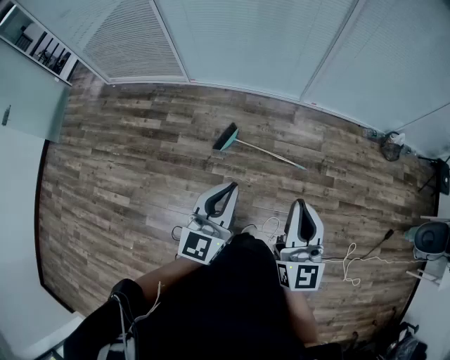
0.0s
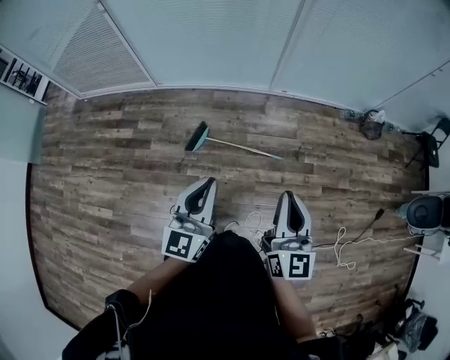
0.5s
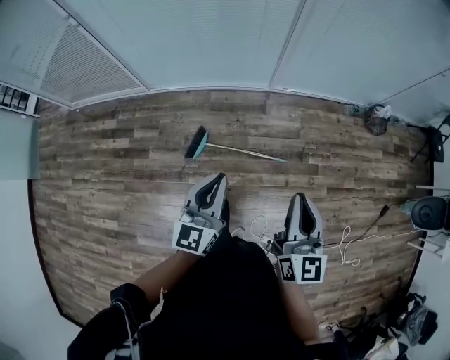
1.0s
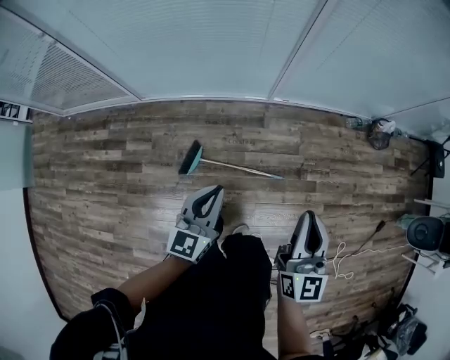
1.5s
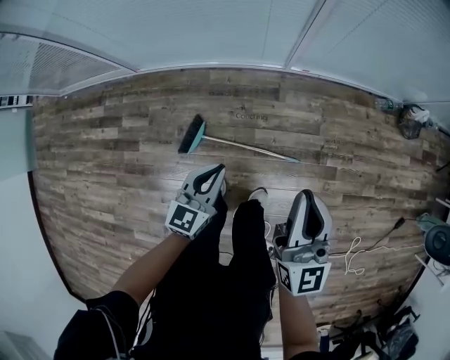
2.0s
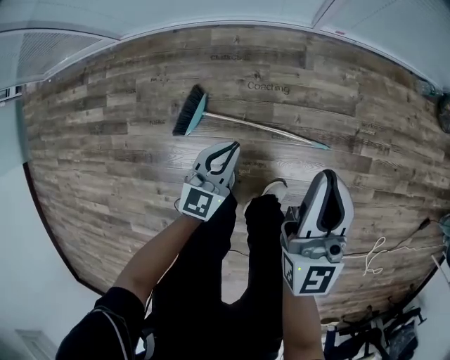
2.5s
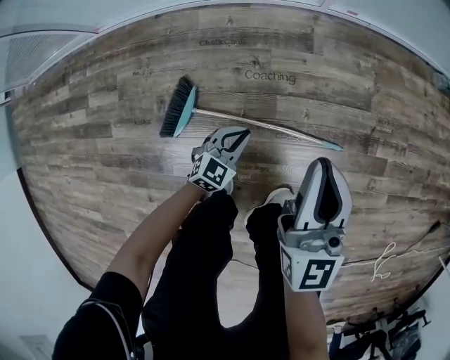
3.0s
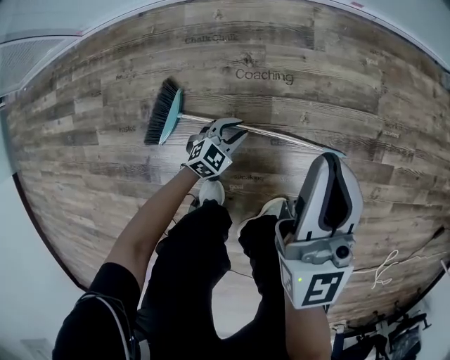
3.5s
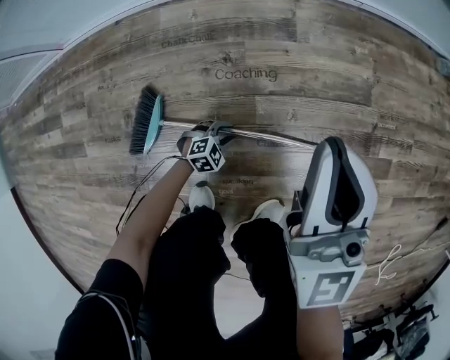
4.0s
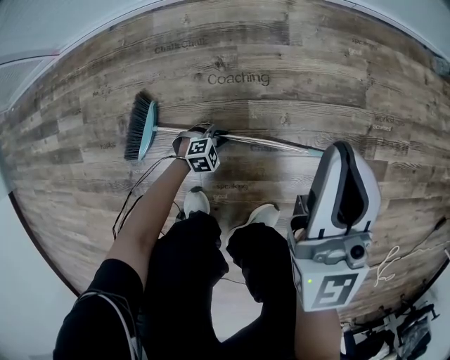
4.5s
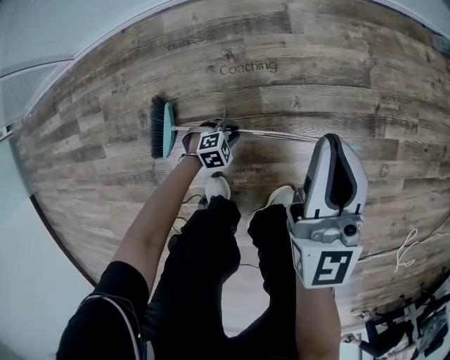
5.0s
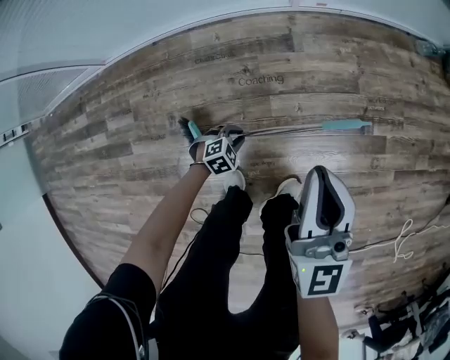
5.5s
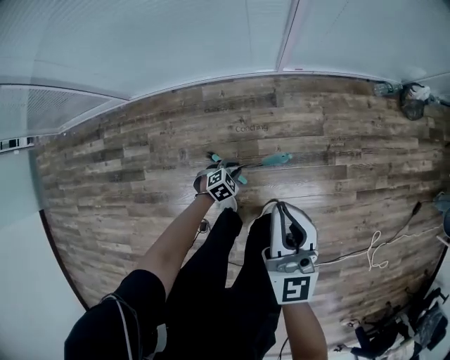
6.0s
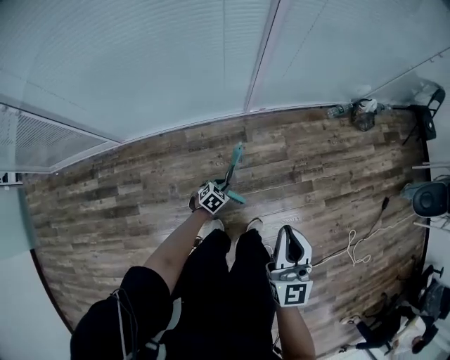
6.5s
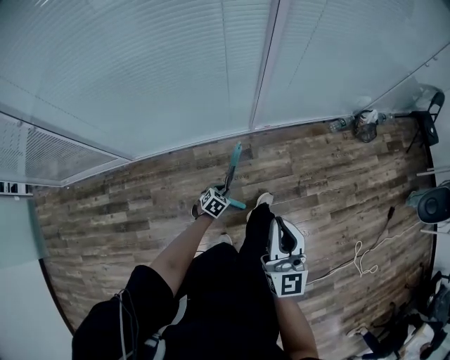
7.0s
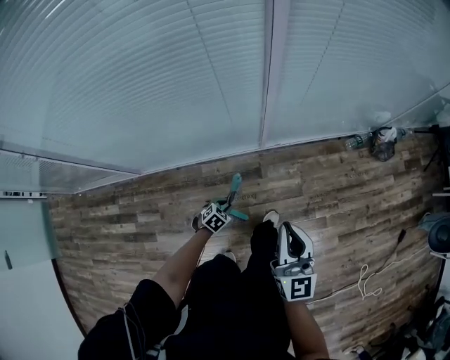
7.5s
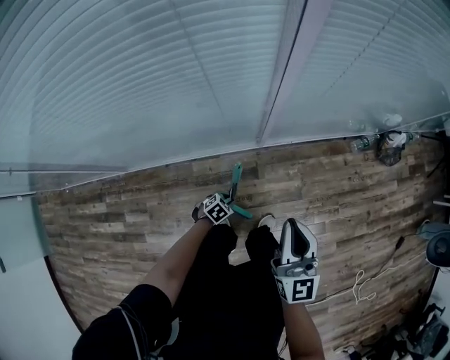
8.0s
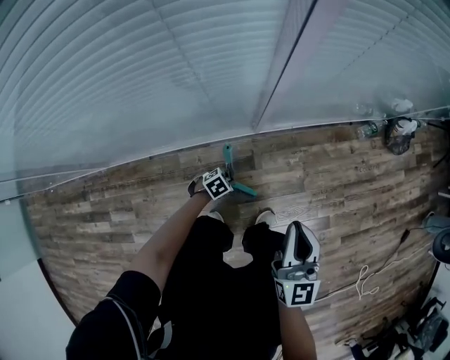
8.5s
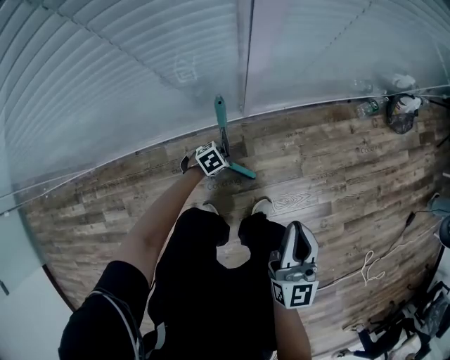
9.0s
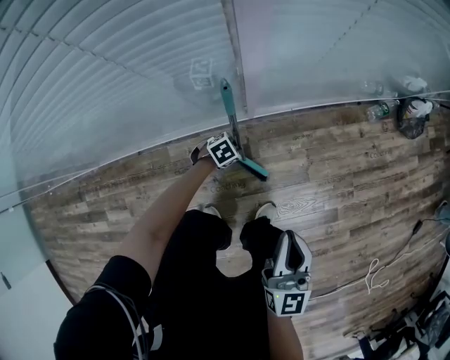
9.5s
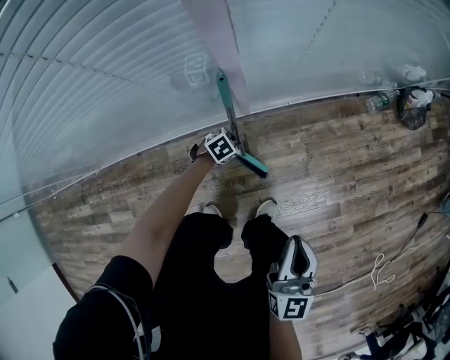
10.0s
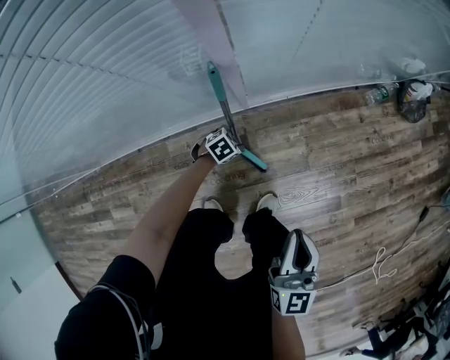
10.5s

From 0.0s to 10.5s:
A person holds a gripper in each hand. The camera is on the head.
From 0.0s to 2.0s: Both grippers travel together forward and downward, roughly 40 cm. The left gripper changes its angle by approximately 20 degrees.
From 2.0s to 4.0s: The left gripper shifts approximately 70 cm downward, tips its fingers downward by some 40 degrees, and opens its fingers. Meanwhile the right gripper heads downward, covering approximately 40 cm.
From 4.0s to 6.5s: The two grippers go some 50 cm upward. The left gripper swivels some 20 degrees.
From 6.5s to 8.5s: The right gripper moves about 40 cm. The left gripper changes place by roughly 35 cm, and swivels about 20 degrees.
From 8.5s to 10.5s: The right gripper heads downward and to the right, covering some 10 cm, while the left gripper is displaced forward and downward by roughly 15 cm, and opens.

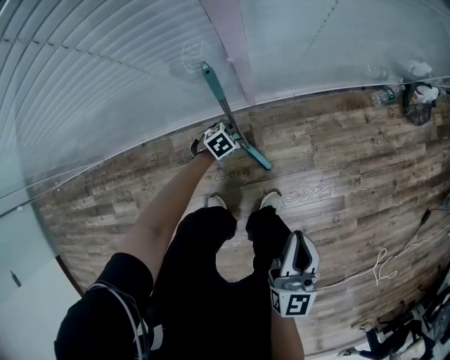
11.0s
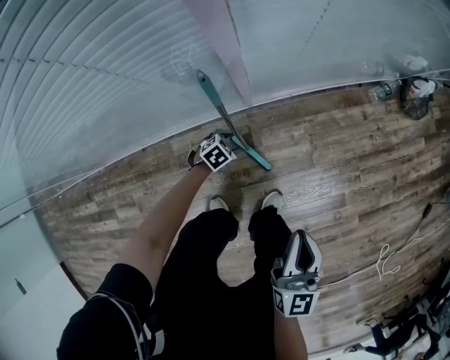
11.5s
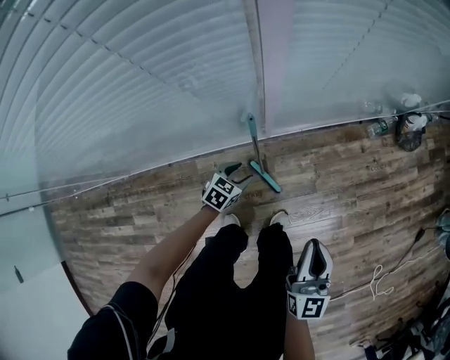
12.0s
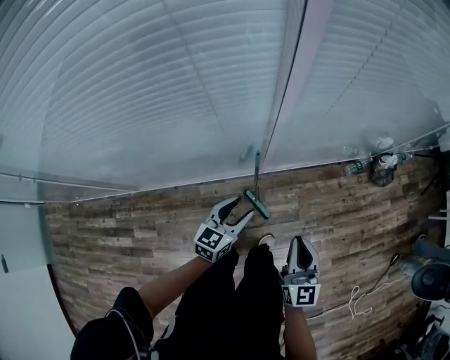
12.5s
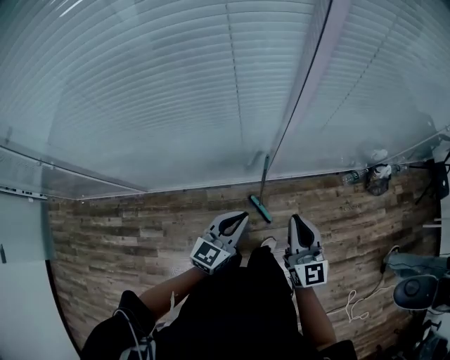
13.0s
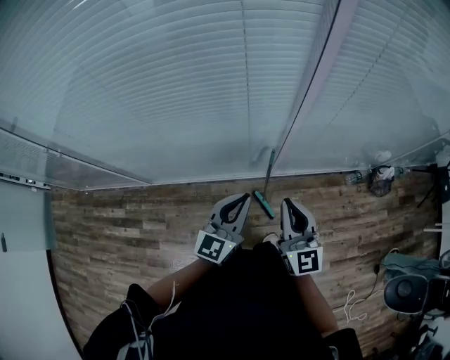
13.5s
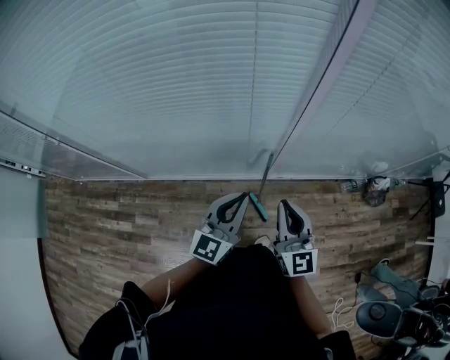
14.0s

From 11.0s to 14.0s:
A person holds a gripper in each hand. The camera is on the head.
From 11.0s to 12.5s: The left gripper travels upward by about 50 cm, and points its fingers roughly 40 degrees further upward. The right gripper shifts approximately 25 cm upward.
From 12.5s to 14.0s: The left gripper is displaced upward by approximately 20 cm, turns by some 30 degrees, and closes its fingers. Meanwhile the right gripper heads upward and to the left, covering roughly 15 cm.

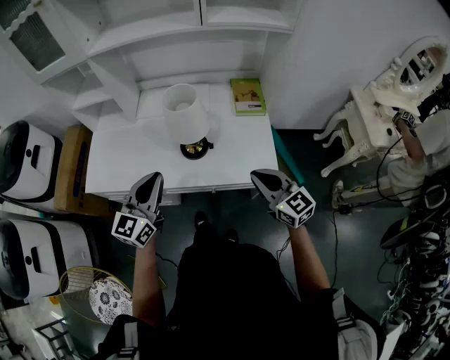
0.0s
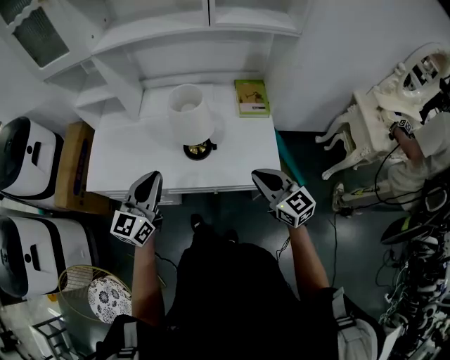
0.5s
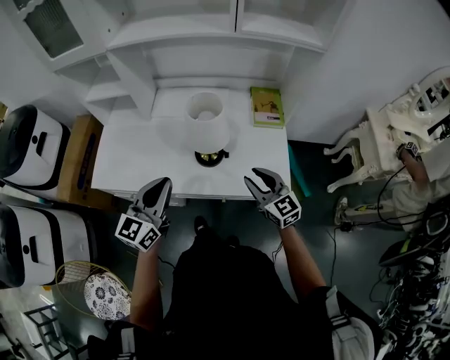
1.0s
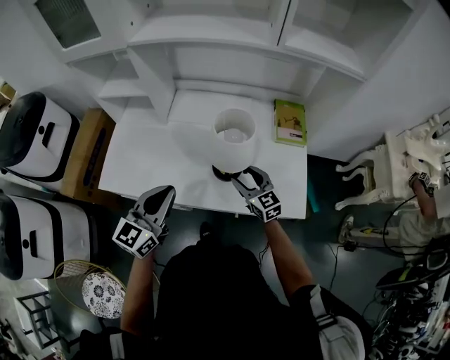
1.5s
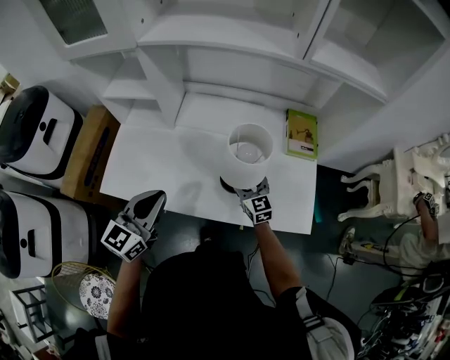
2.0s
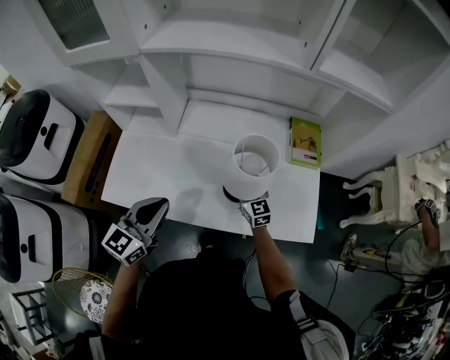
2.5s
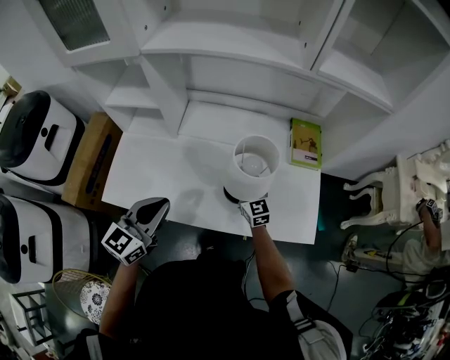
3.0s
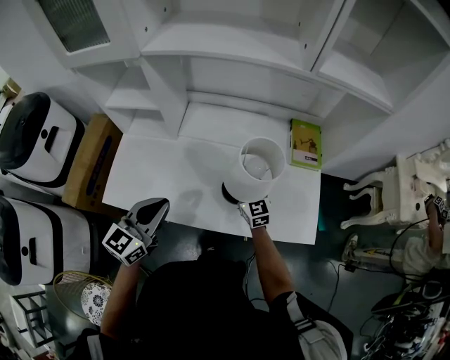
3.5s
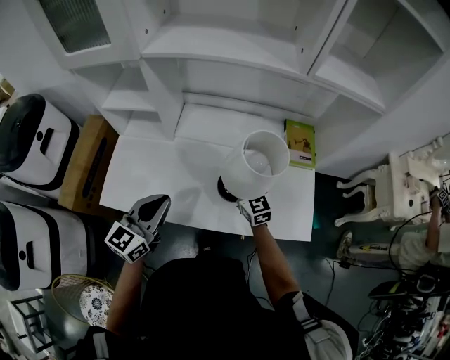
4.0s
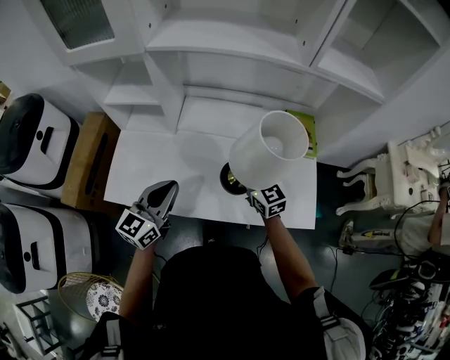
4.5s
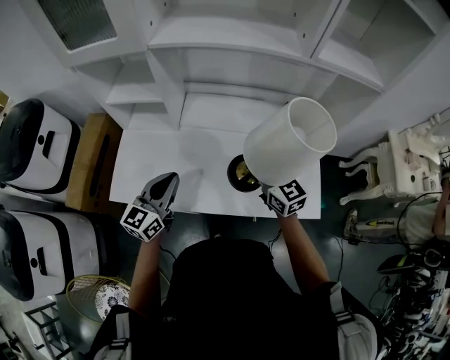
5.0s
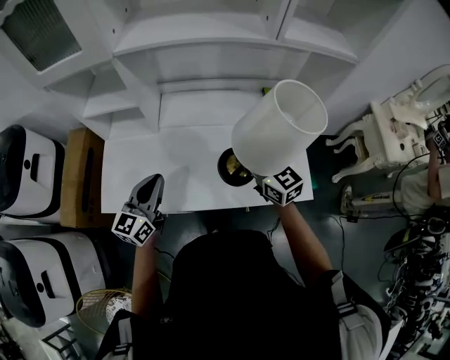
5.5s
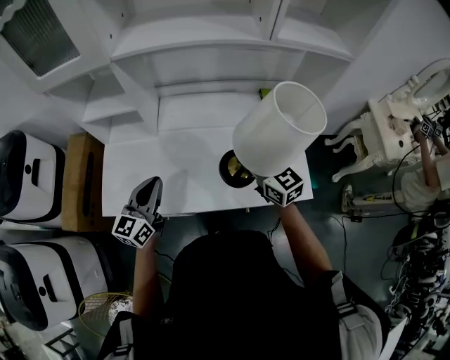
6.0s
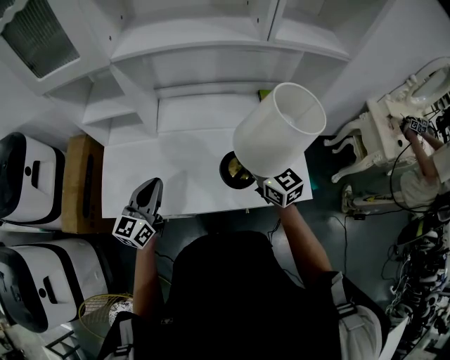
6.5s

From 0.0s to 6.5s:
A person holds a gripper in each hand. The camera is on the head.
From 0.0s to 2.0s: The right gripper moves forward, to the left and downward, roughly 35 cm, and opens, while the left gripper moves to the left and forward, some 15 cm.
From 2.0s to 4.5s: The right gripper travels upward by about 10 cm, and closes its fingers.
From 4.5s to 6.5s: The right gripper is displaced upward by roughly 5 cm.

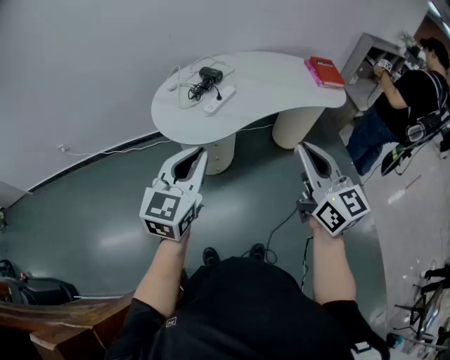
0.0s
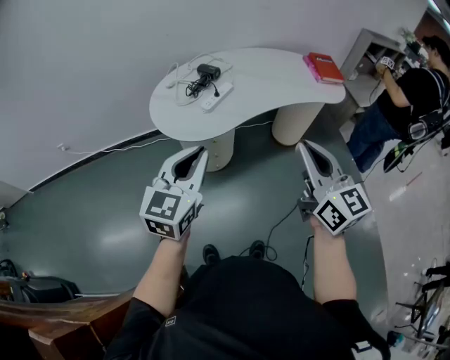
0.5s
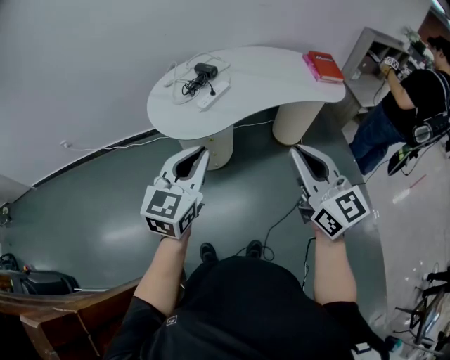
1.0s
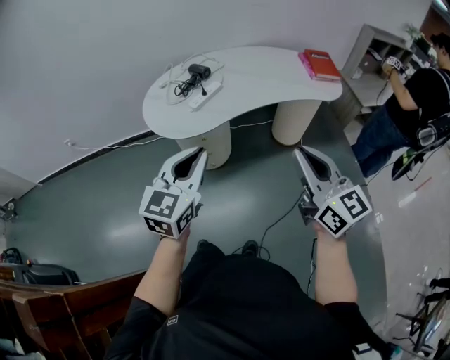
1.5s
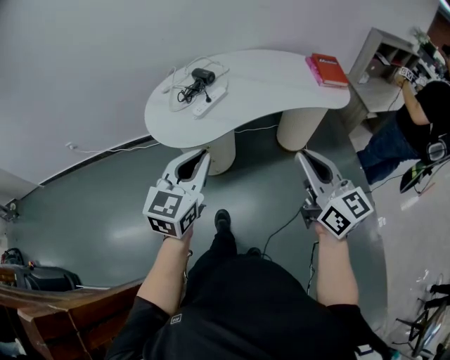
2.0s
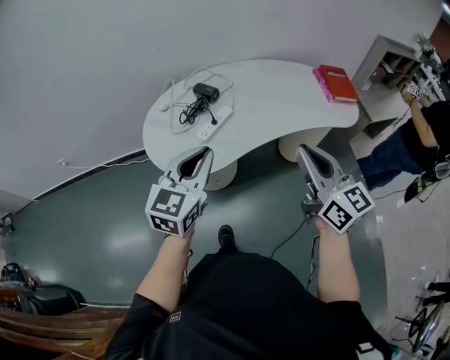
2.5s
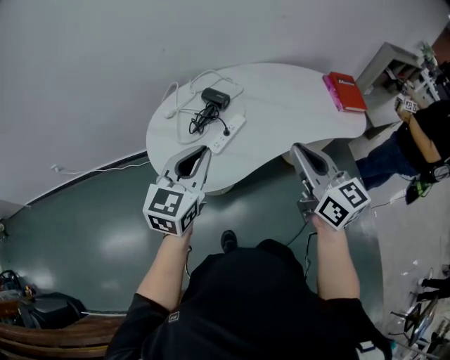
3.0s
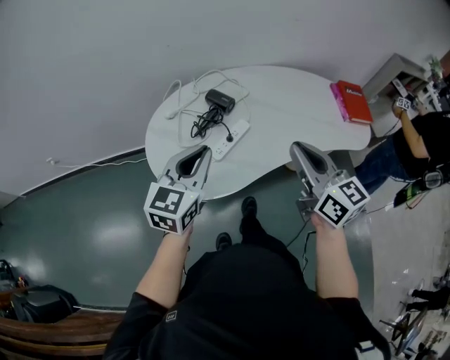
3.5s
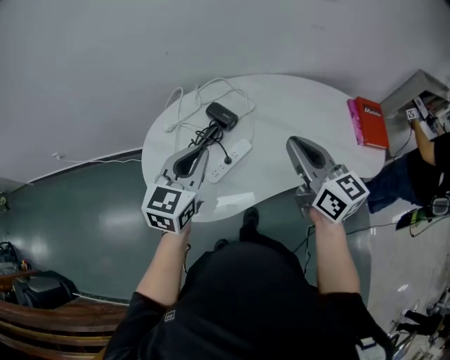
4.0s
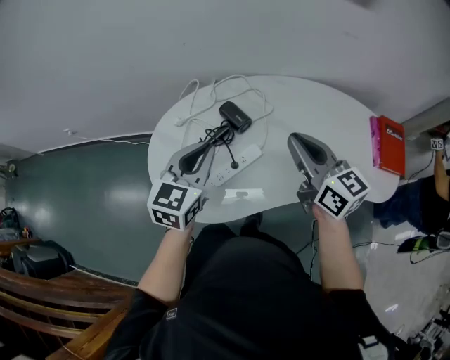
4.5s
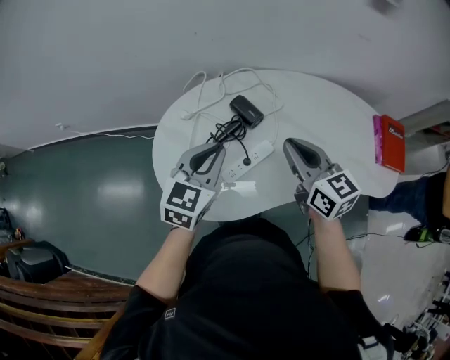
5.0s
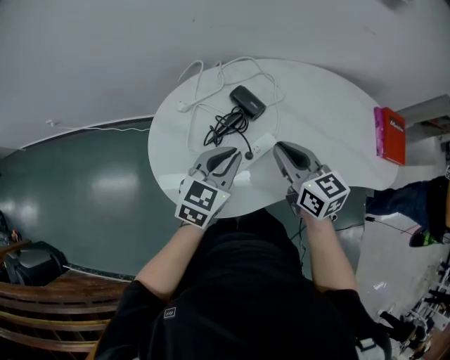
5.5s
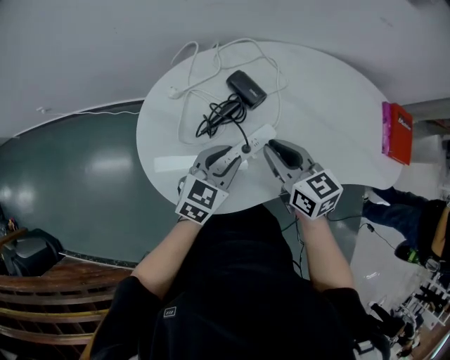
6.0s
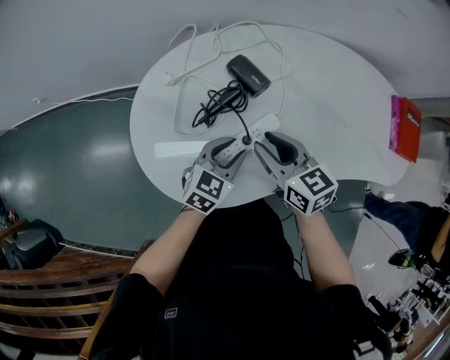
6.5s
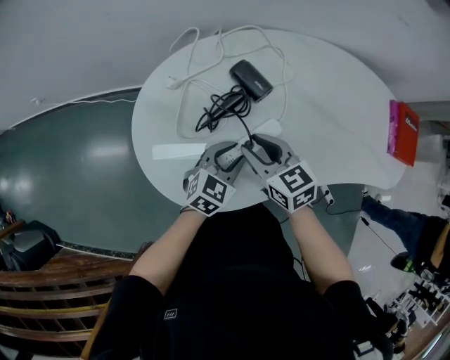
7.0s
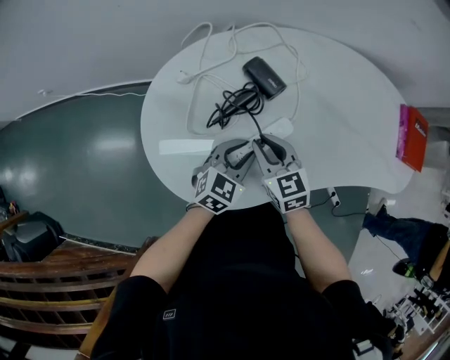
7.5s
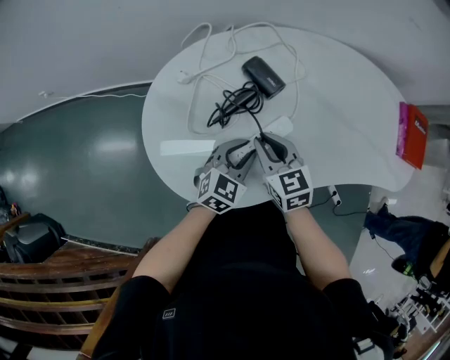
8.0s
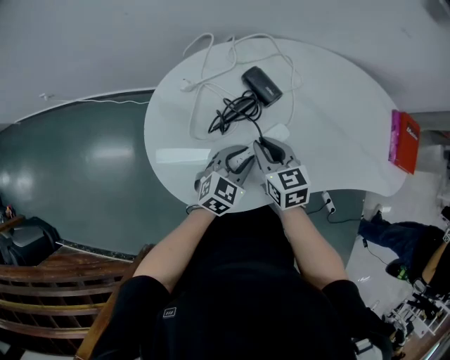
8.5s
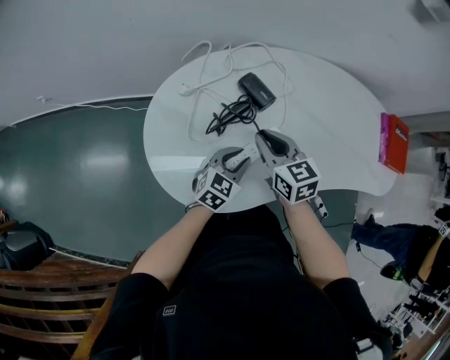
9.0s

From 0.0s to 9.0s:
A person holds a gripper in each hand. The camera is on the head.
From 0.0s to 2.0s: Both grippers move to the right, about 10 cm.
From 2.0s to 4.5s: The pair of grippers is taken forward, roughly 50 cm.
From 4.5s to 7.0s: The right gripper moves downward and to the left, approximately 25 cm, and turns by approximately 30 degrees; the left gripper travels downward by about 25 cm, swivels about 20 degrees, and opens its fingers.
From 7.0s to 9.0s: There are only small adjustments of the grippers.
